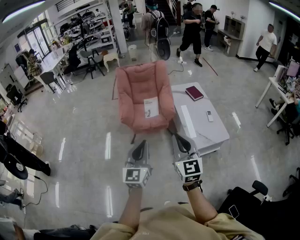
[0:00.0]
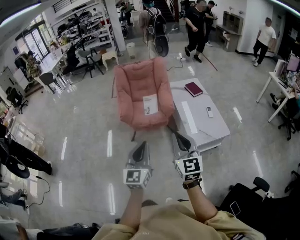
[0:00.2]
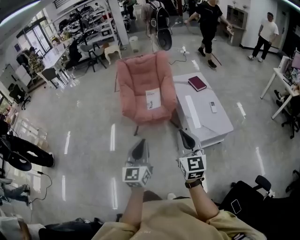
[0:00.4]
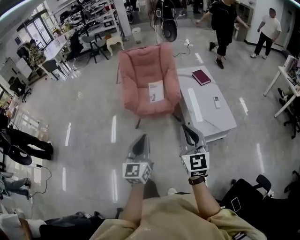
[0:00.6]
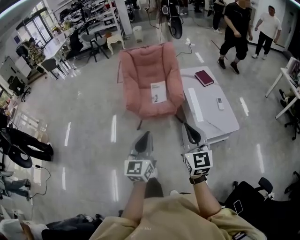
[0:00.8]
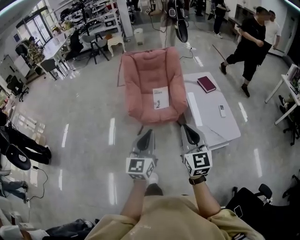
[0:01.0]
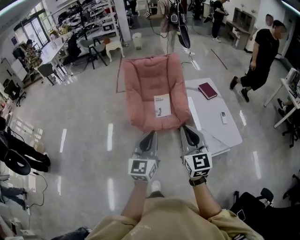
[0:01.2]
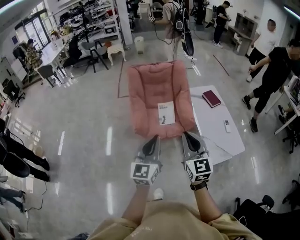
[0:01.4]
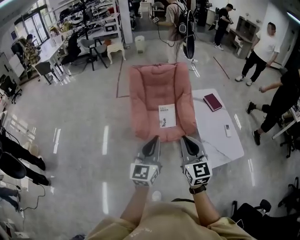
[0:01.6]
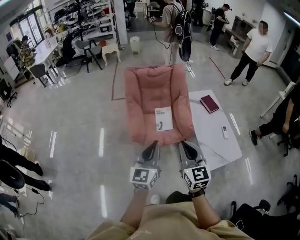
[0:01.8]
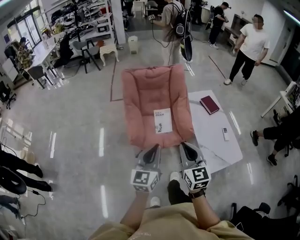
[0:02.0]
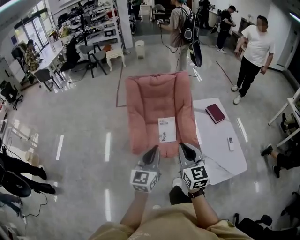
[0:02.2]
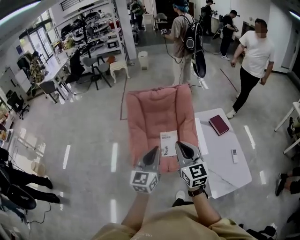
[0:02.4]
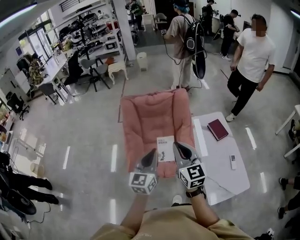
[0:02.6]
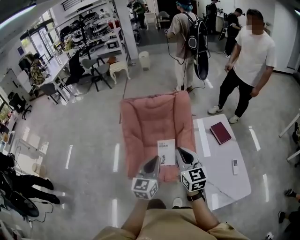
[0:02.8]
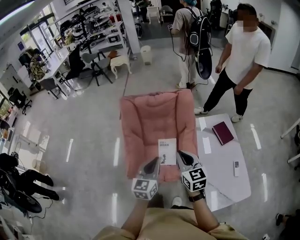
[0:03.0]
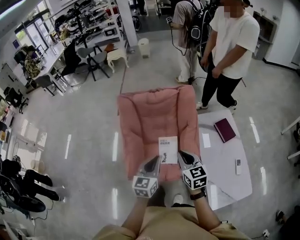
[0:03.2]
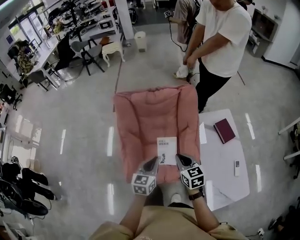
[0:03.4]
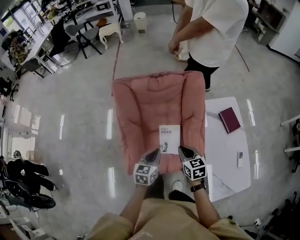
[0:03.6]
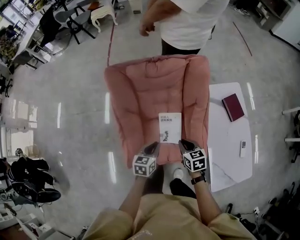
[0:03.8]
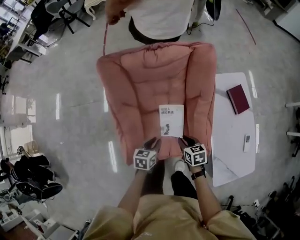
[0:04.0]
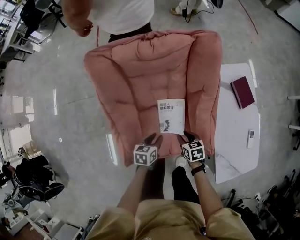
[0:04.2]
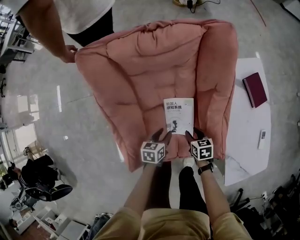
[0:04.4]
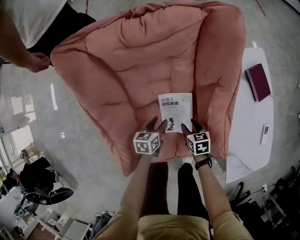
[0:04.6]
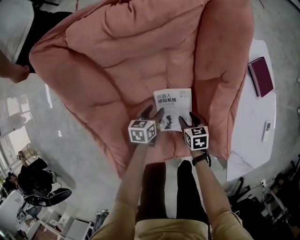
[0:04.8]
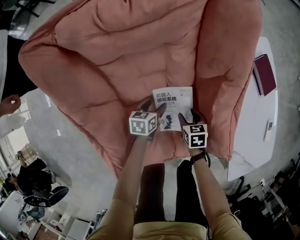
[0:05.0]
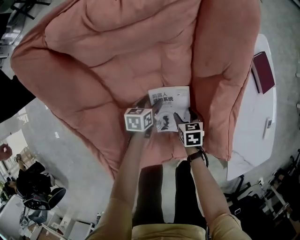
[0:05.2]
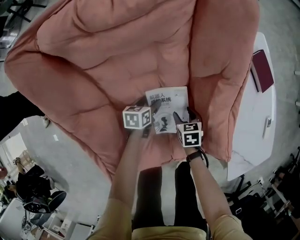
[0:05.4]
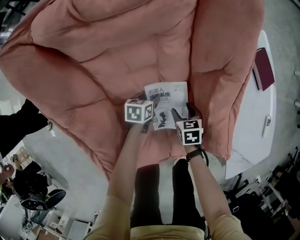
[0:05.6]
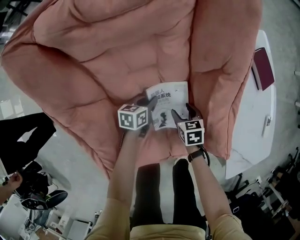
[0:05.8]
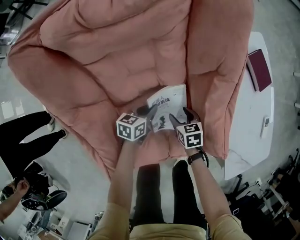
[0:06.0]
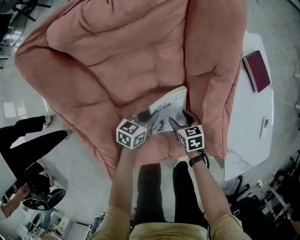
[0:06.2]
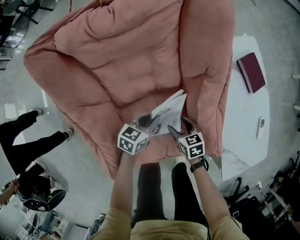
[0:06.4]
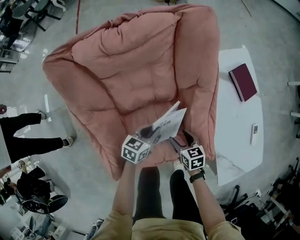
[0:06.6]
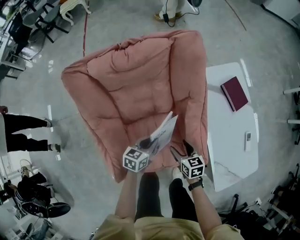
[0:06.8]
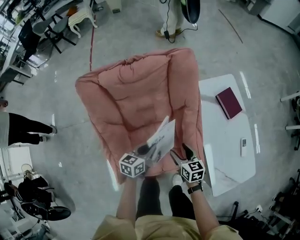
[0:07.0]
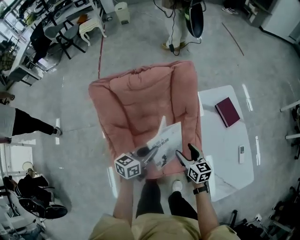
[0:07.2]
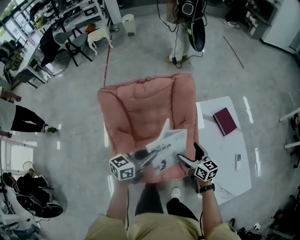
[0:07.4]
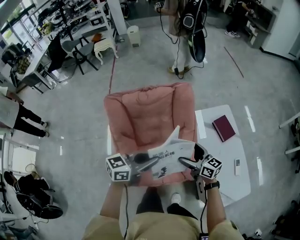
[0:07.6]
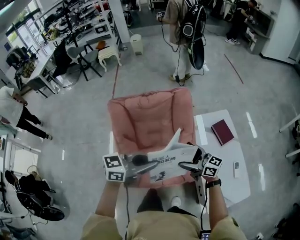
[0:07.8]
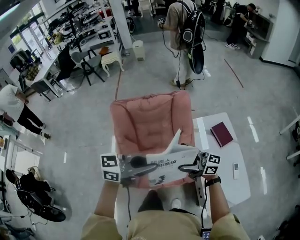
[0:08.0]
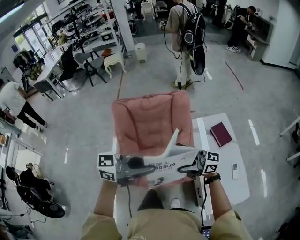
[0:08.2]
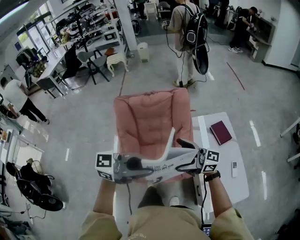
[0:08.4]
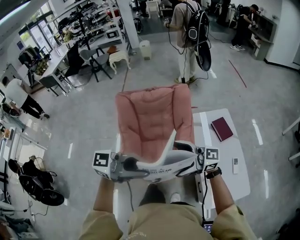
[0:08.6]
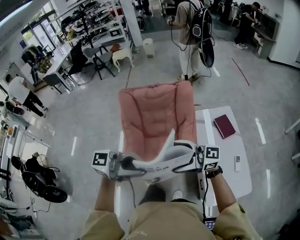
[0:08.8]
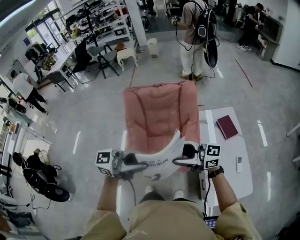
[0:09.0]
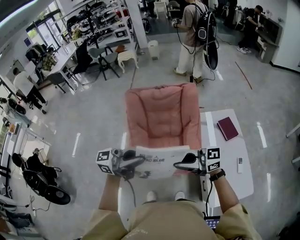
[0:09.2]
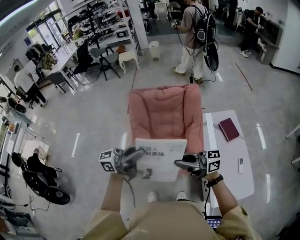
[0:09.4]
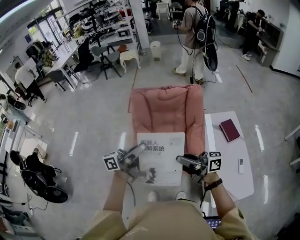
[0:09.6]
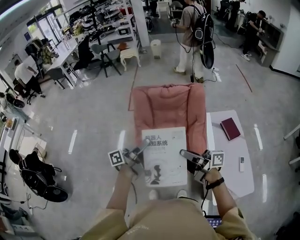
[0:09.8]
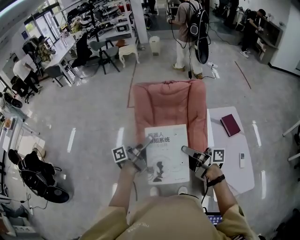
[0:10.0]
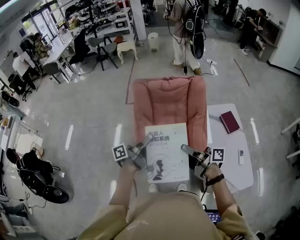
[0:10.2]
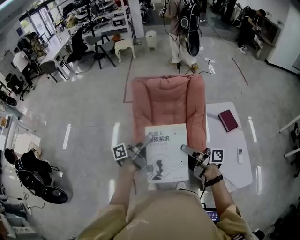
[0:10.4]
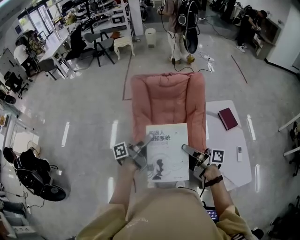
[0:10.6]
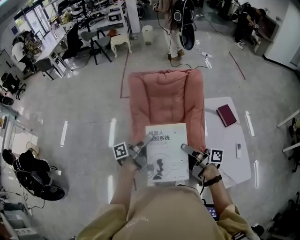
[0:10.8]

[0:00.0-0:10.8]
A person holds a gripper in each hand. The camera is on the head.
0.0 to 1.6 s: Both grippers move forward and to the left, approximately 35 cm.
1.6 to 3.0 s: Both grippers move forward, some 35 cm.
3.0 to 4.6 s: The grippers both shift downward and forward by about 60 cm. The right gripper tips its fingers downward by approximately 40 degrees, and opens its fingers. Meanwhile the left gripper angles its fingers downward, by roughly 30 degrees, and opens its fingers.
4.6 to 6.2 s: The right gripper heads downward, covering approximately 5 cm. The left gripper goes downward and returns, about 15 cm each way, swivels approximately 20 degrees, and closes.
6.2 to 7.8 s: Both grippers move upward, approximately 60 cm. The left gripper rotates about 40 degrees, while the right gripper angles its fingers upward, by about 60 degrees, and opens its fingers.
7.8 to 9.2 s: The left gripper moves some 20 cm, and swivels roughly 30 degrees. The right gripper changes place by approximately 25 cm, changes its angle by some 40 degrees, and closes up.
9.2 to 10.8 s: The right gripper shifts by about 10 cm, and turns by roughly 70 degrees; the left gripper goes about 15 cm downward, and rolls counterclockwise, seen from behind, by about 50 degrees.

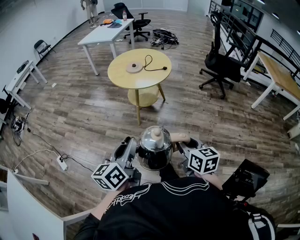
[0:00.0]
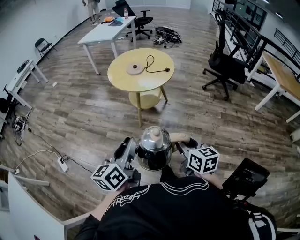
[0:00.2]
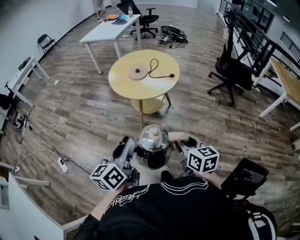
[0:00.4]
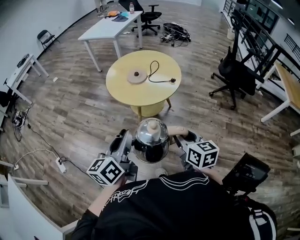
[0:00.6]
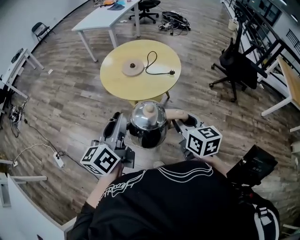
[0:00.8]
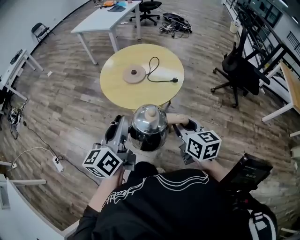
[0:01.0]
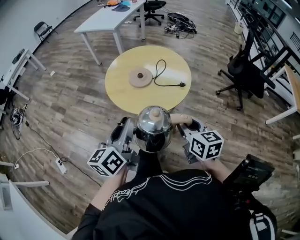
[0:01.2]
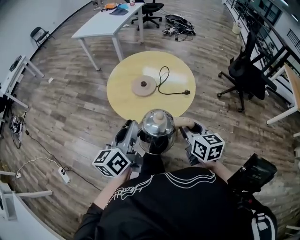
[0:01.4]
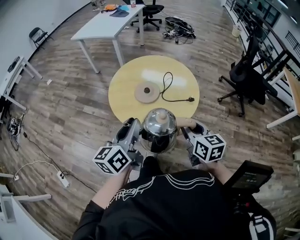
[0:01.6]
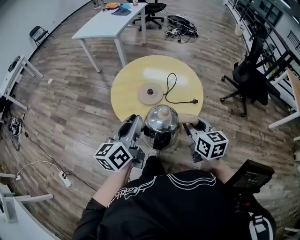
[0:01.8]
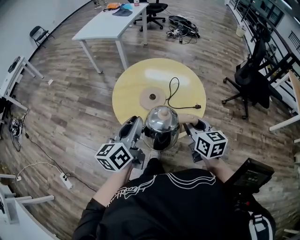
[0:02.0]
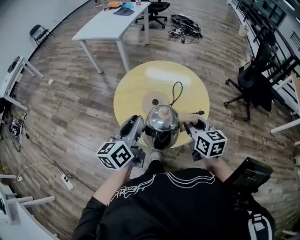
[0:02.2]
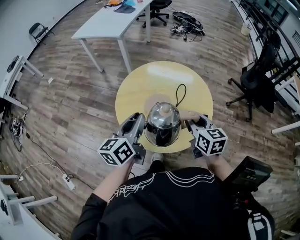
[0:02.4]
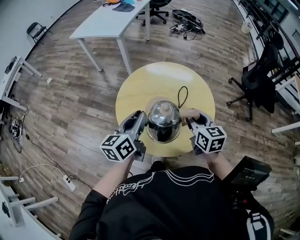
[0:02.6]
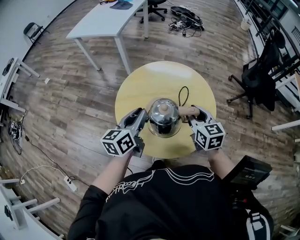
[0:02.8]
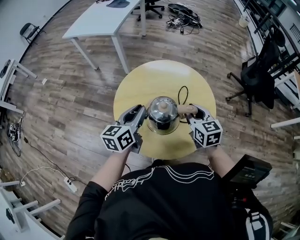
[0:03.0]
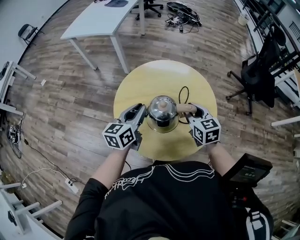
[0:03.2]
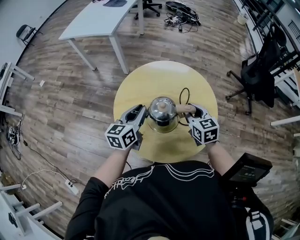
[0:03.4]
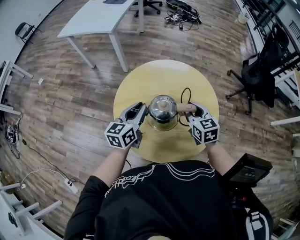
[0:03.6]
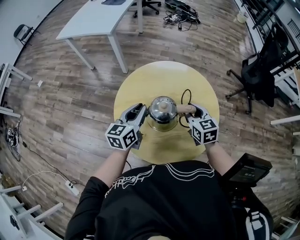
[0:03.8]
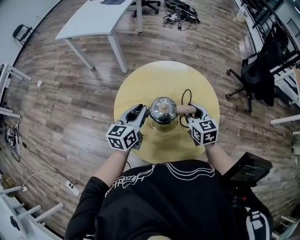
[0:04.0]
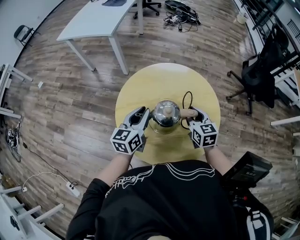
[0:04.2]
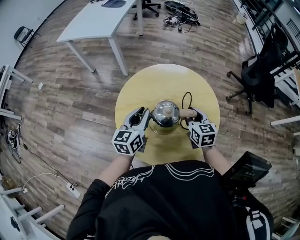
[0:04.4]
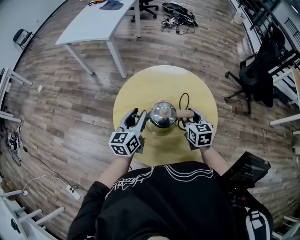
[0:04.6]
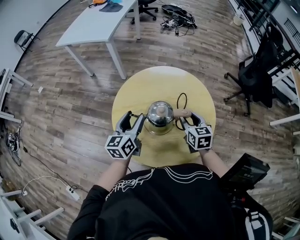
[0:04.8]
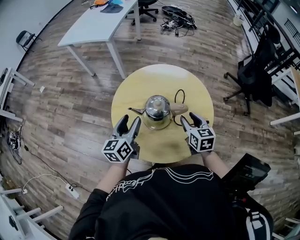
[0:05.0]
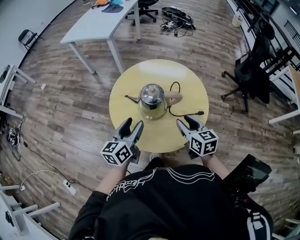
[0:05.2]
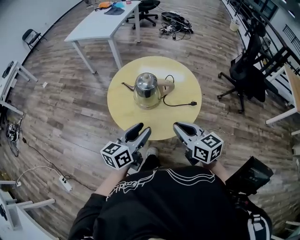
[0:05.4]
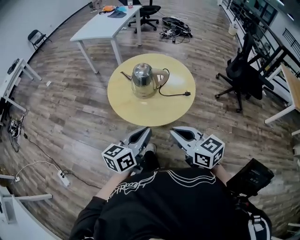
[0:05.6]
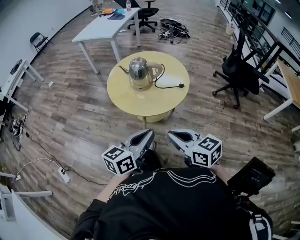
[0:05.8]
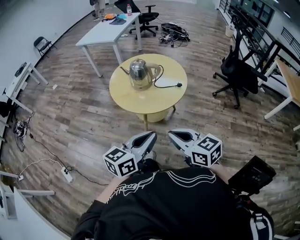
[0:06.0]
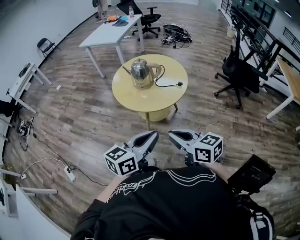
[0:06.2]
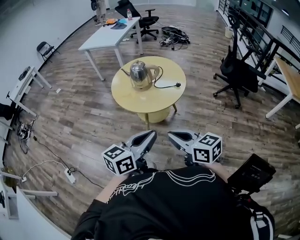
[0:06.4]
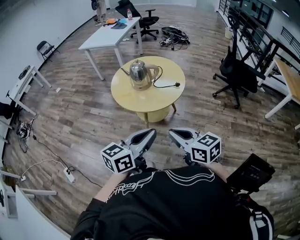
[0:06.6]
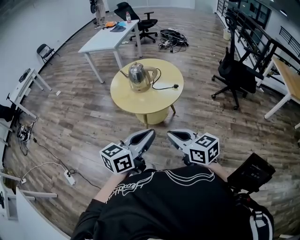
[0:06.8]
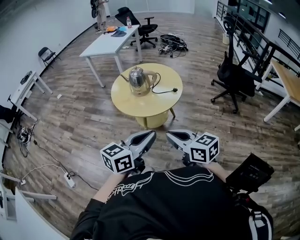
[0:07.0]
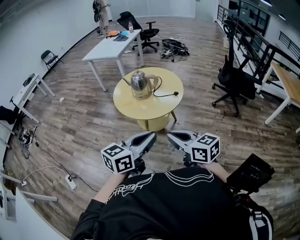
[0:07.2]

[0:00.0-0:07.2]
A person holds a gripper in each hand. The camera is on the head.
0.0 to 1.4 s: The pair of grippers is taken forward, roughly 40 cm.
1.4 to 2.8 s: The grippers both shift forward by approximately 25 cm.
2.8 to 4.4 s: The left gripper shifts about 10 cm forward and downward; the right gripper moves downward and forward, some 10 cm.
4.4 to 5.8 s: The two grippers travel together, backward, some 40 cm. The right gripper rotates some 30 degrees, and closes. Meanwhile the left gripper opens, then closes again.
5.8 to 7.2 s: Both grippers travel together backward and upward, approximately 10 cm.

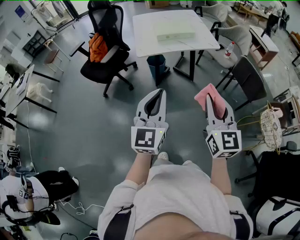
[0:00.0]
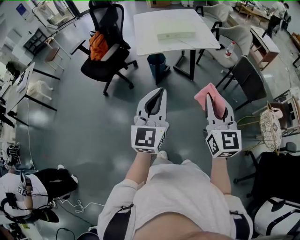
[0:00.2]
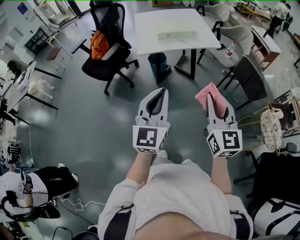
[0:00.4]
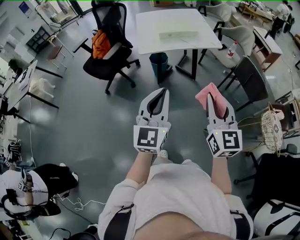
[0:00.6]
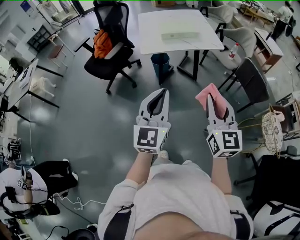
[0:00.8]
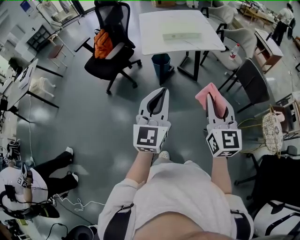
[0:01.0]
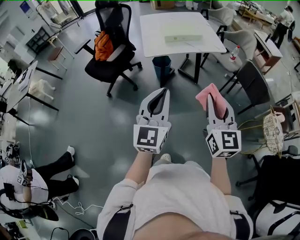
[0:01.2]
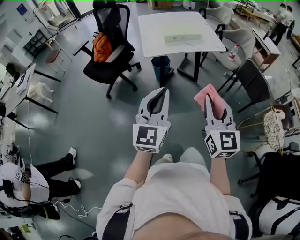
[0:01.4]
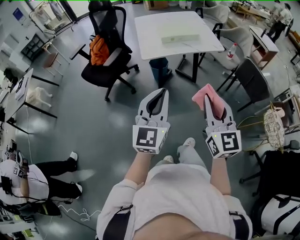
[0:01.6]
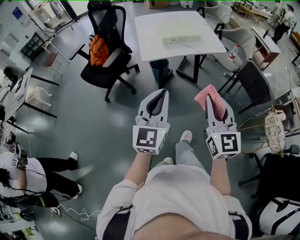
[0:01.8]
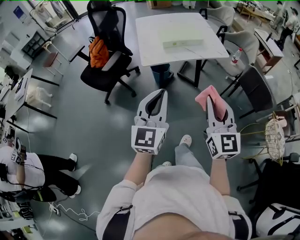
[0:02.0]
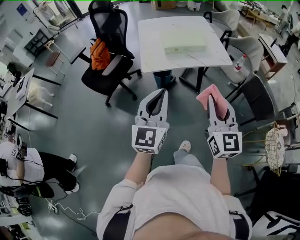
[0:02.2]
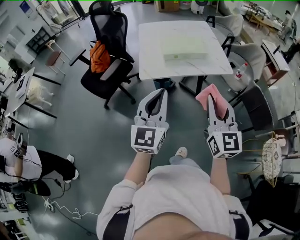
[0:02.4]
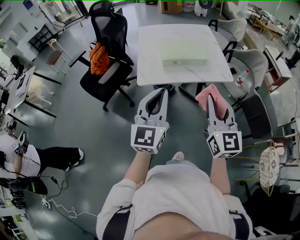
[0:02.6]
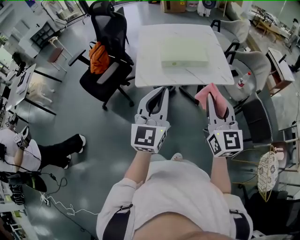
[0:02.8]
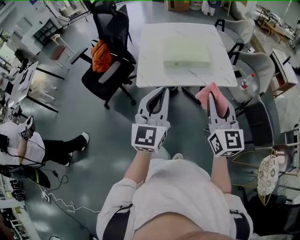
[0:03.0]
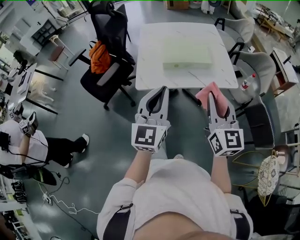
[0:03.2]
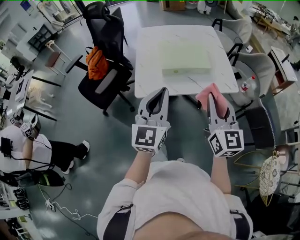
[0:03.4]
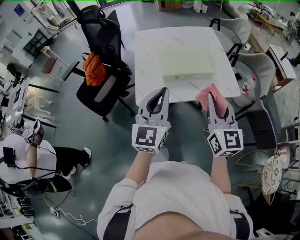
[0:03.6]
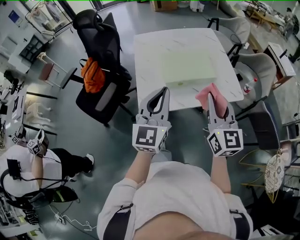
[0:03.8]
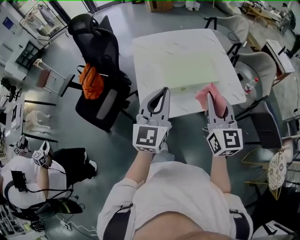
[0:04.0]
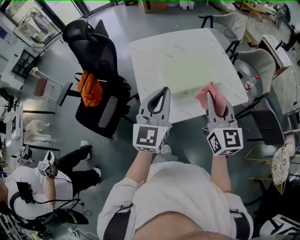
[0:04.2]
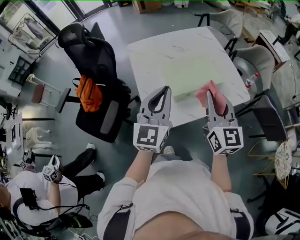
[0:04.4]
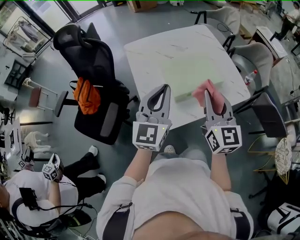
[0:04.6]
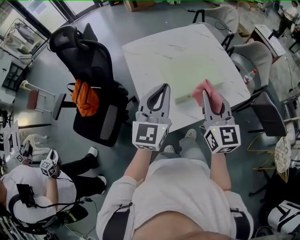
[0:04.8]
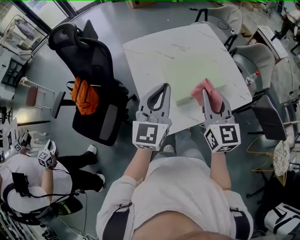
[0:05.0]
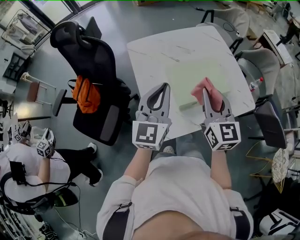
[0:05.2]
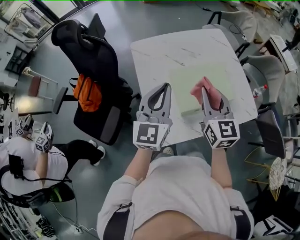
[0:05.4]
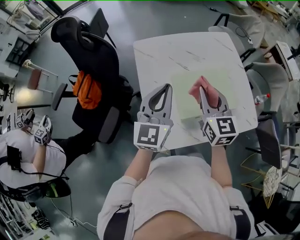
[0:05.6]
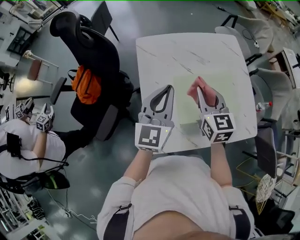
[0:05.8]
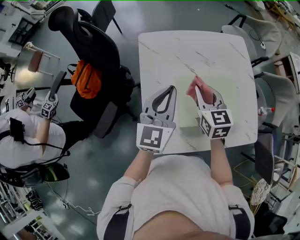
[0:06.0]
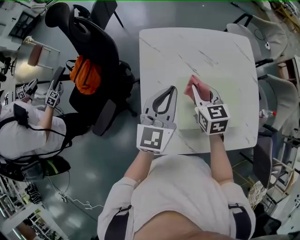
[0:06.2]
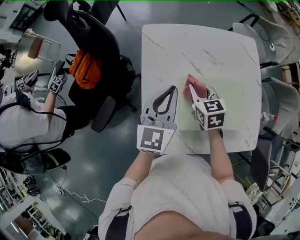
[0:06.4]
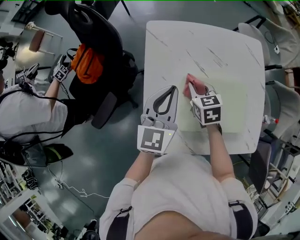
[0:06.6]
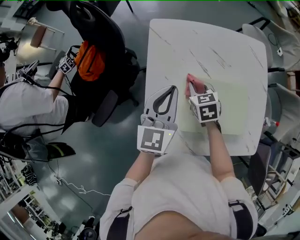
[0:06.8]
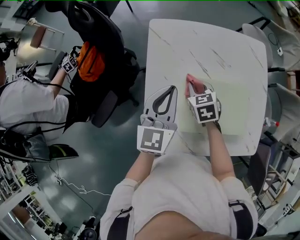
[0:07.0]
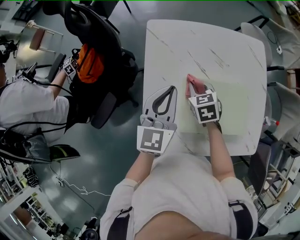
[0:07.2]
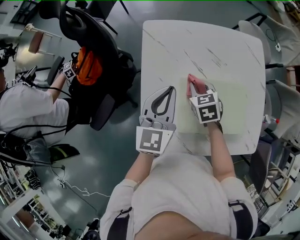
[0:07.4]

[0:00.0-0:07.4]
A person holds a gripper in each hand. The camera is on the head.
0.0 to 1.4 s: Both grippers travel together to the left, roughly 5 cm.
1.4 to 3.0 s: The two grippers go about 35 cm forward.
3.0 to 4.4 s: The two grippers go some 30 cm forward and to the left.
4.4 to 6.0 s: The left gripper shifts about 20 cm forward; the right gripper travels forward and downward by roughly 30 cm, and swivels roughly 30 degrees.
6.0 to 7.4 s: The right gripper goes some 15 cm downward and forward, and changes its angle by some 30 degrees. The left gripper moves roughly 5 cm.
